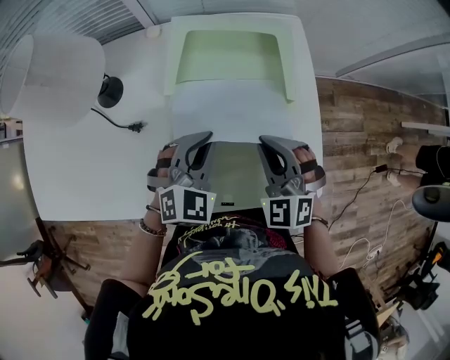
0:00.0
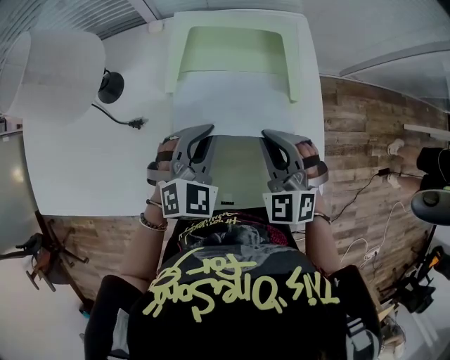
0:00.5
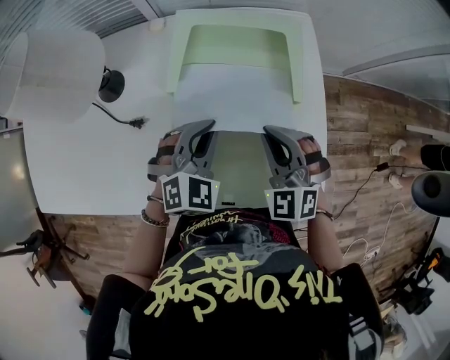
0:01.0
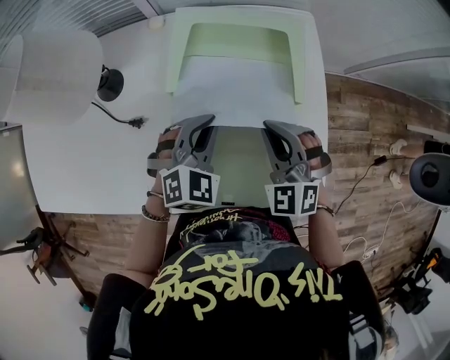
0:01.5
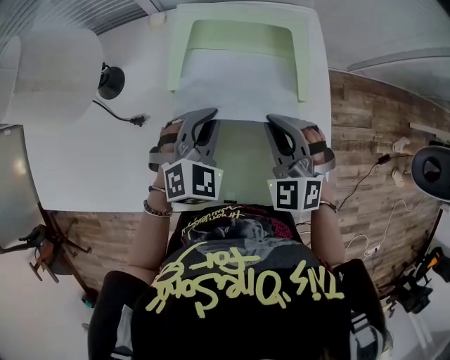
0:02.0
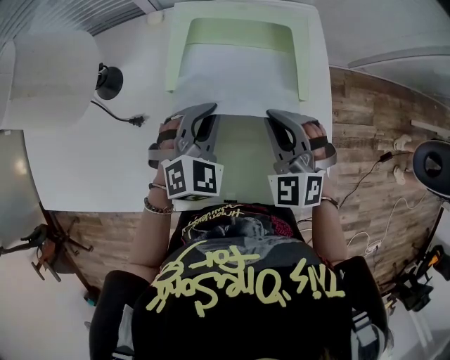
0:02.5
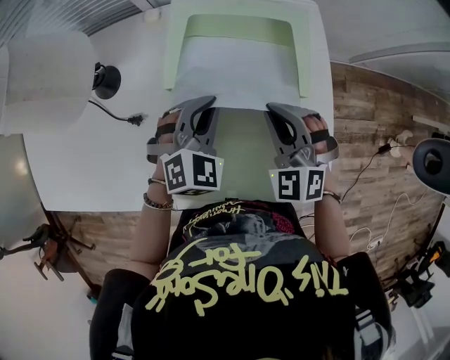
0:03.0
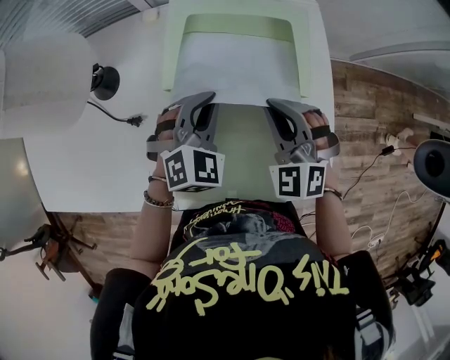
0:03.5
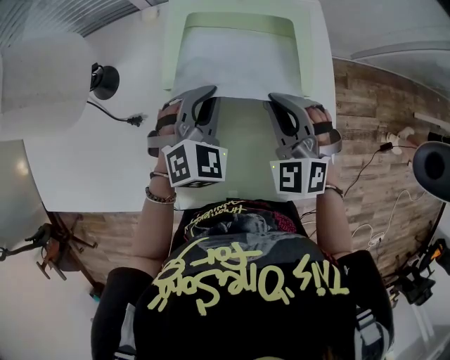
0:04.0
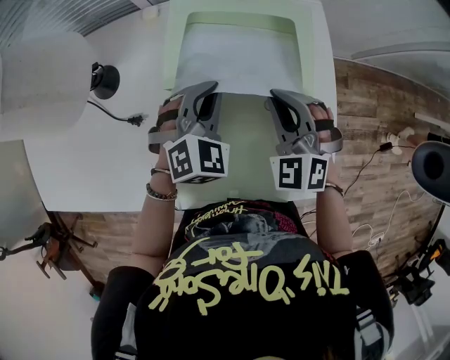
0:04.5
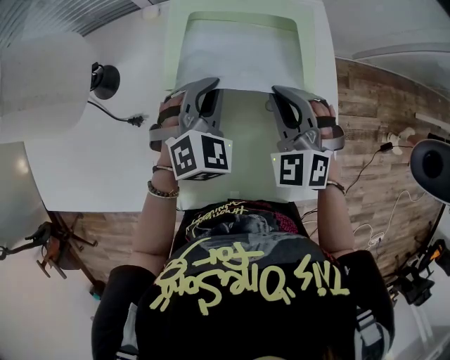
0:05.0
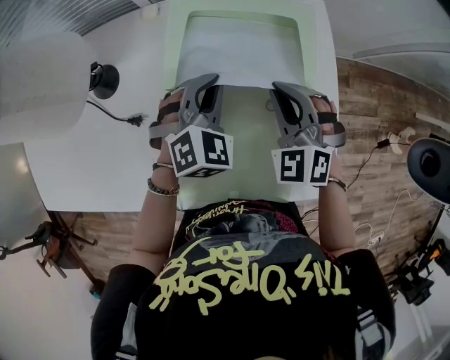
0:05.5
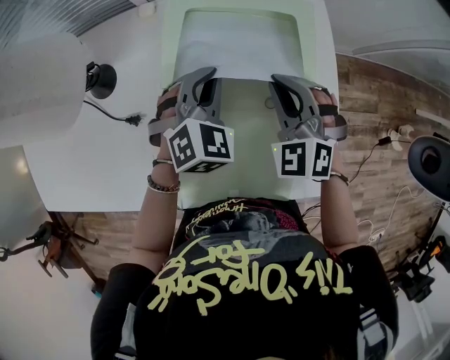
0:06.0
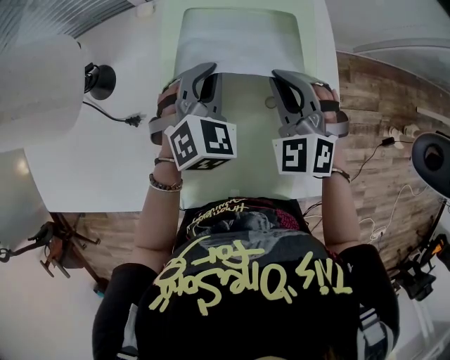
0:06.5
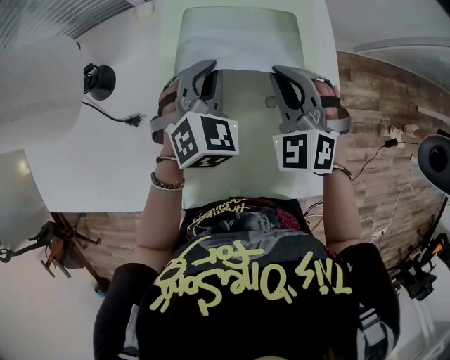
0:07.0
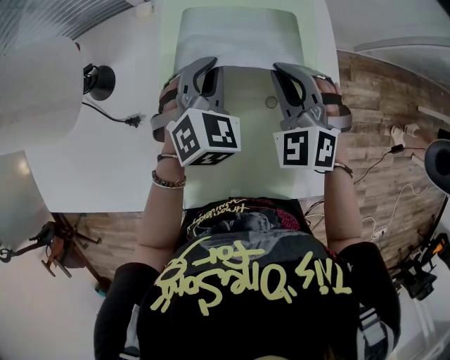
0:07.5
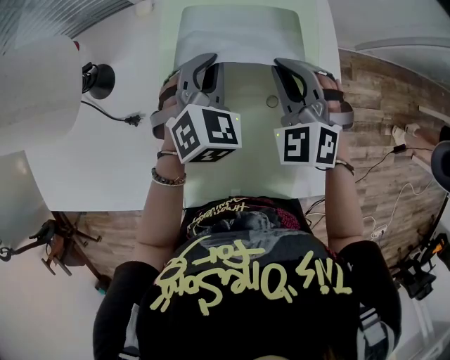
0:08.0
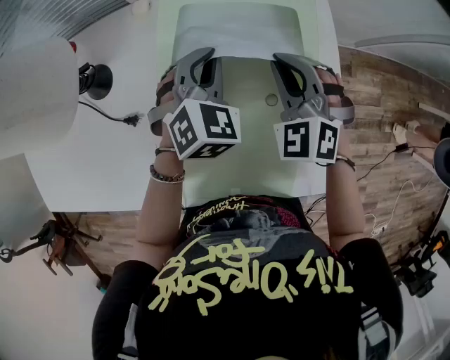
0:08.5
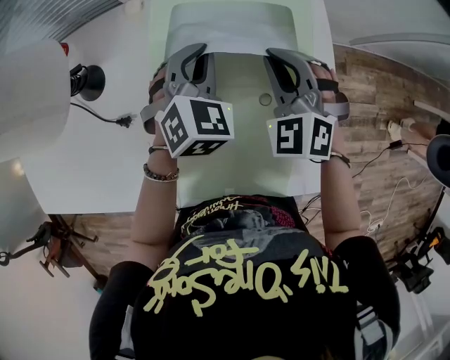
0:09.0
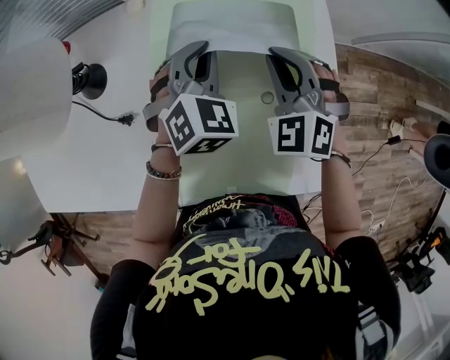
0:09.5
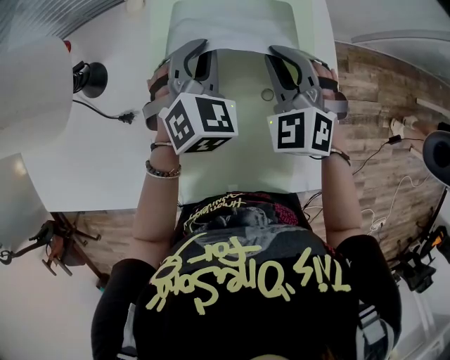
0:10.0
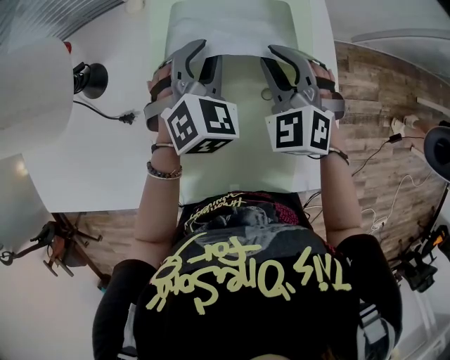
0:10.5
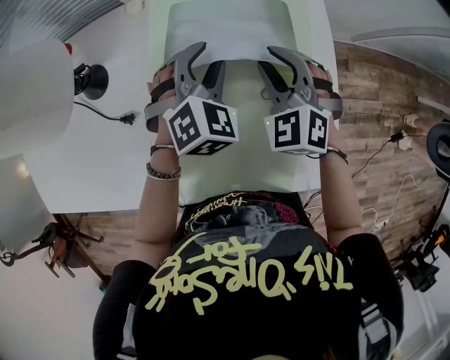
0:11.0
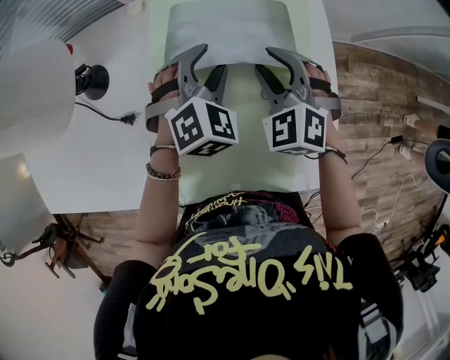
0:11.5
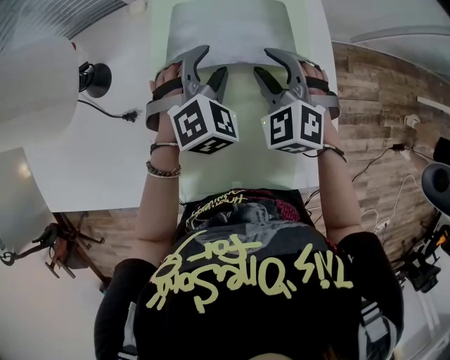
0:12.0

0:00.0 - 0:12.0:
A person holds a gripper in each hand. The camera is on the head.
0:00.0 - 0:02.0: There are only small adjustments of the grippers.
0:02.0 - 0:04.0: The grippers make only small movements.
0:04.0 - 0:06.0: There are only small adjustments of the grippers.
0:06.0 - 0:10.0: The grippers move only a little.
0:10.0 - 0:12.0: The left gripper opens; the right gripper opens its fingers.

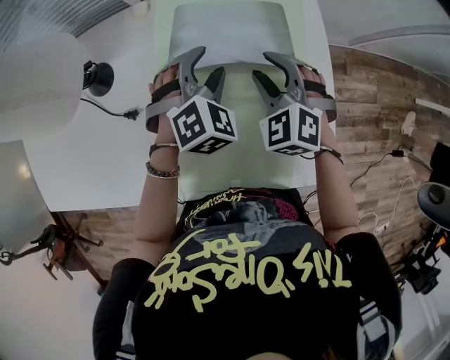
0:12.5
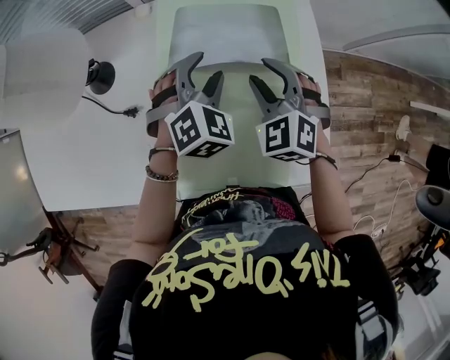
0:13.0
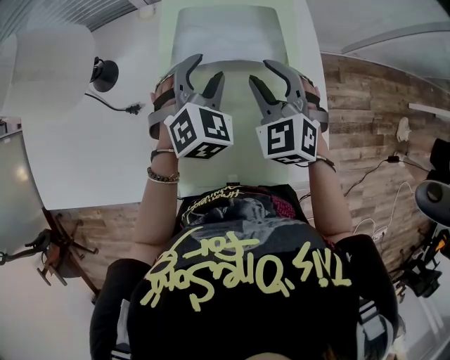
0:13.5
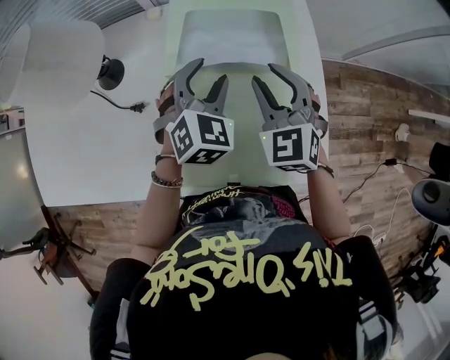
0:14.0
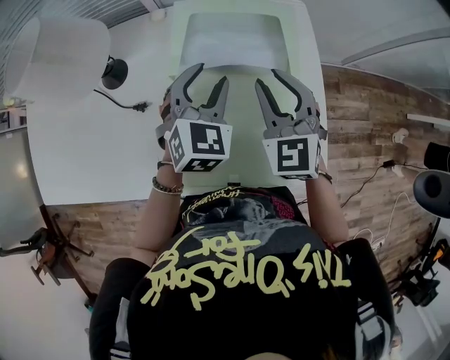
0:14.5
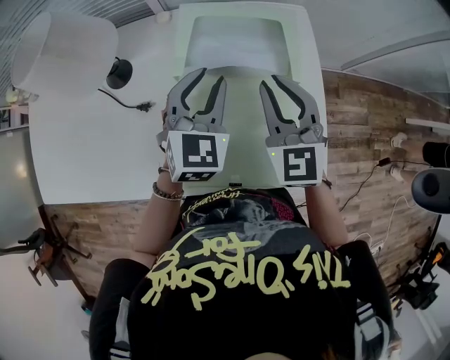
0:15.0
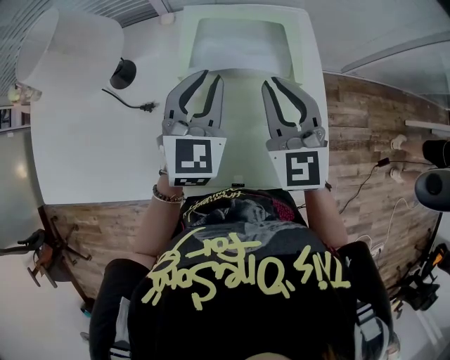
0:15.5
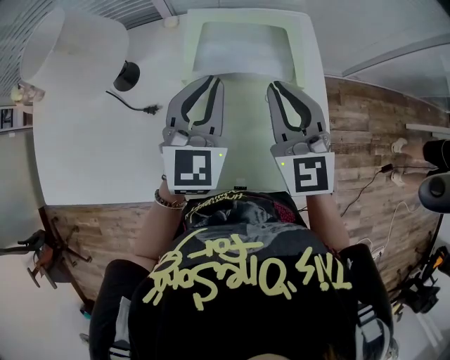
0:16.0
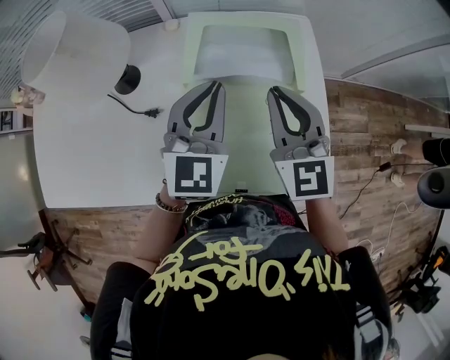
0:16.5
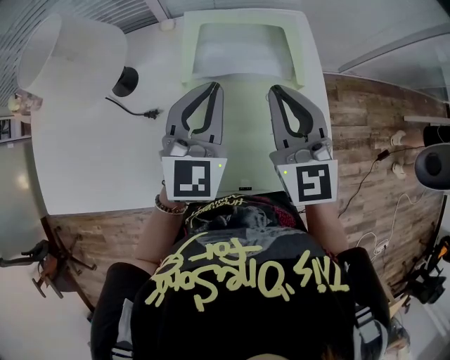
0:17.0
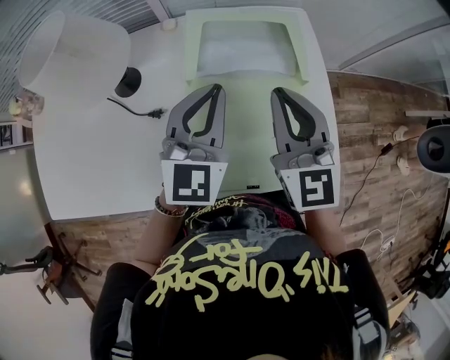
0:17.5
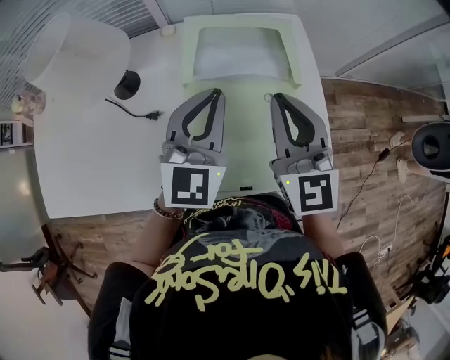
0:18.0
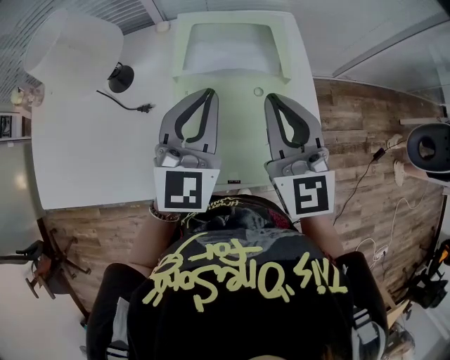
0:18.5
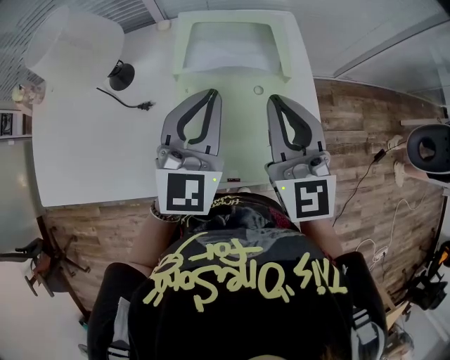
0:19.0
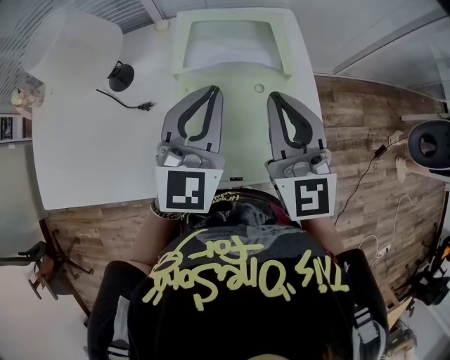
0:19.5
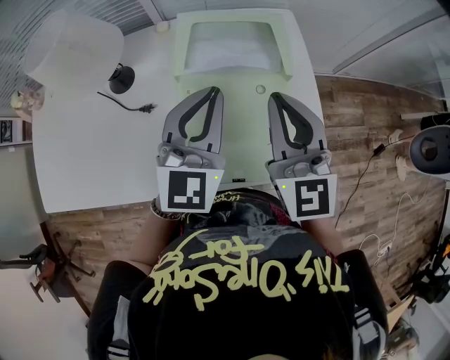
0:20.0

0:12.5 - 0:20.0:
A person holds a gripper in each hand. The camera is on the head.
0:12.5 - 0:14.5: The grippers both shift upward by about 10 cm. The left gripper turns by about 30 degrees. The right gripper swivels approximately 30 degrees.
0:14.5 - 0:16.5: The two grippers go approximately 10 cm upward. The right gripper turns by about 20 degrees, and closes. The left gripper rotates about 20 degrees, and closes up.
0:16.5 - 0:18.0: The grippers move only a little.
0:18.0 - 0:20.0: There are only small adjustments of the grippers.

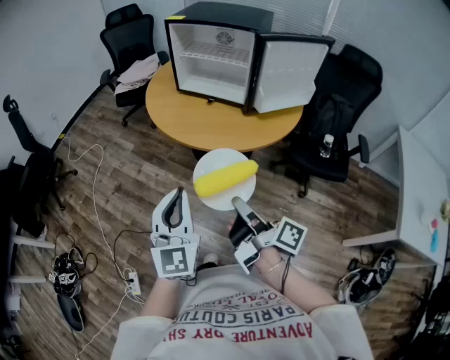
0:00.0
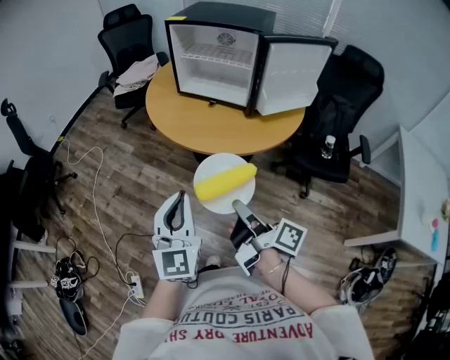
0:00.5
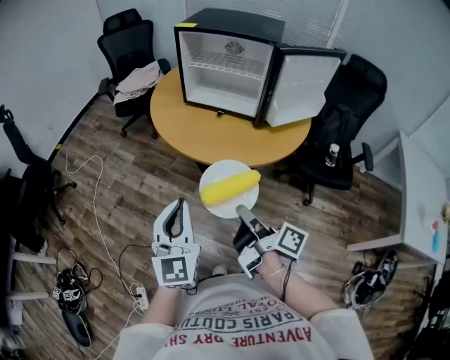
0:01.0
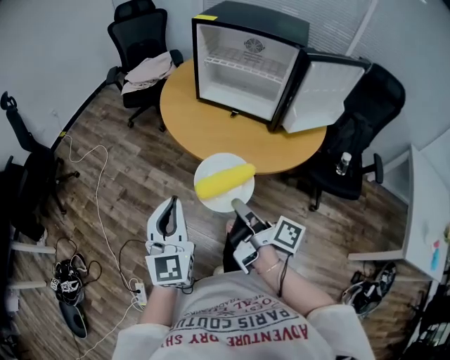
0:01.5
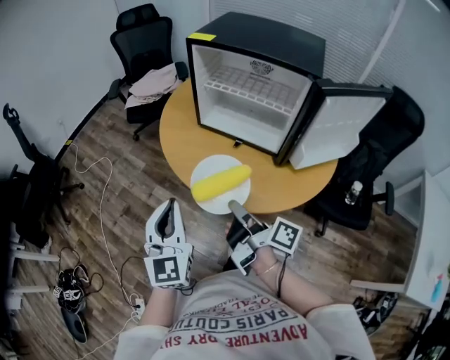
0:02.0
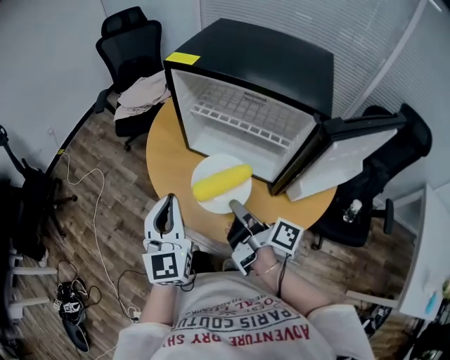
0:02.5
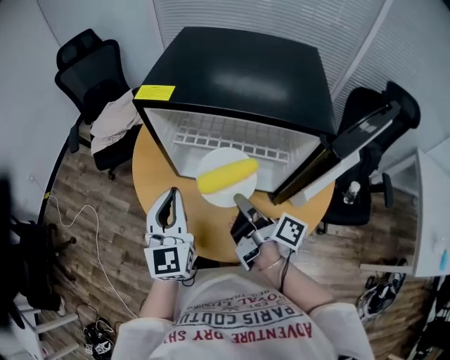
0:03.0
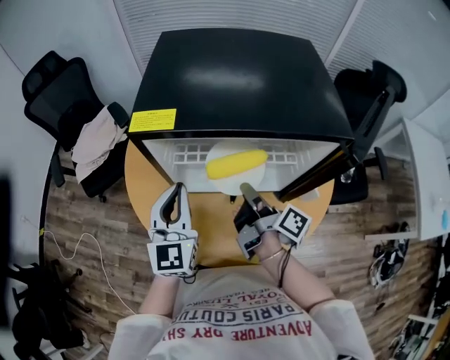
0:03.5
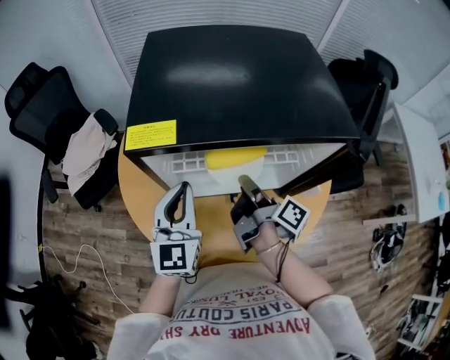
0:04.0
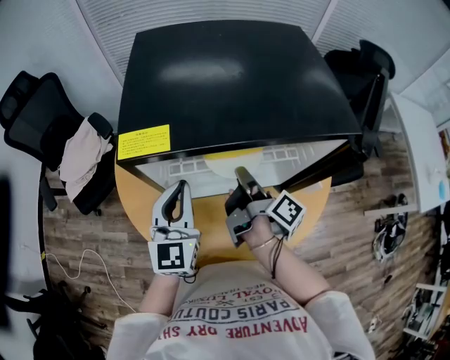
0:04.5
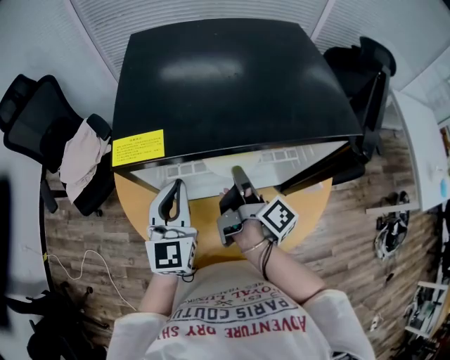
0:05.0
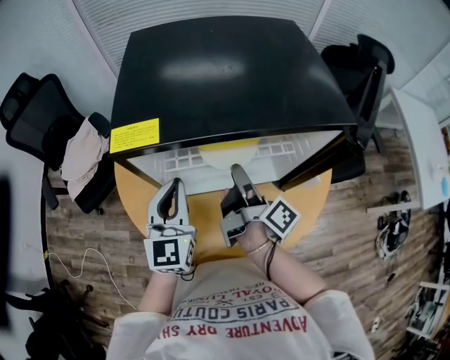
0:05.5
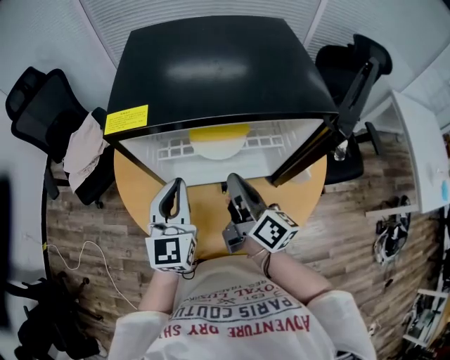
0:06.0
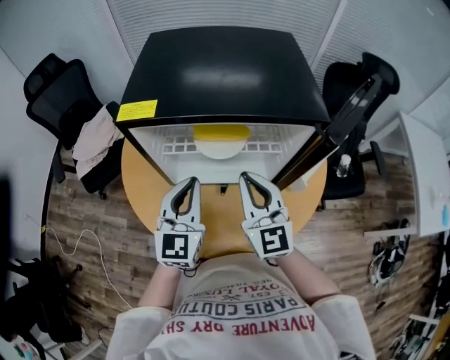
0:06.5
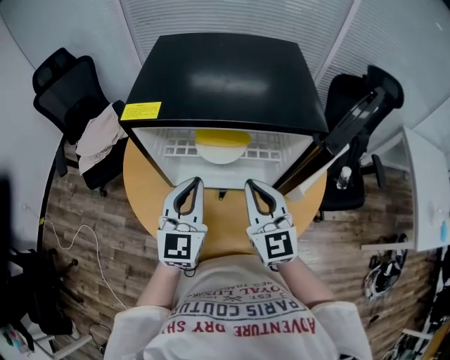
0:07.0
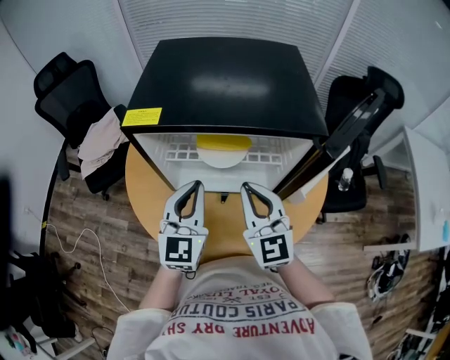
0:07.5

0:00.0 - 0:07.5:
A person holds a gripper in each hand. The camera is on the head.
0:00.0 - 0:02.0: The left gripper moves roughly 25 cm.
0:02.0 - 0:04.0: The left gripper moves some 40 cm, and swivels roughly 40 degrees.
0:05.5 - 0:07.5: The left gripper shifts by approximately 10 cm.
